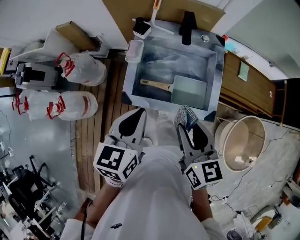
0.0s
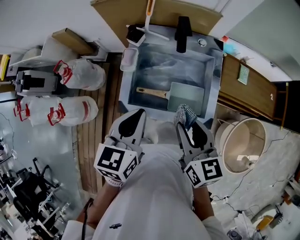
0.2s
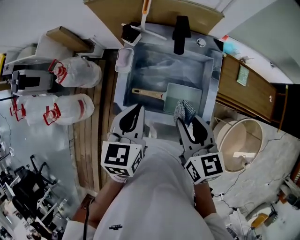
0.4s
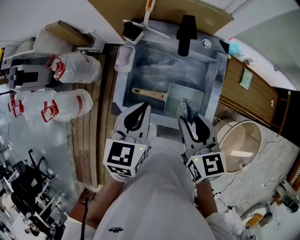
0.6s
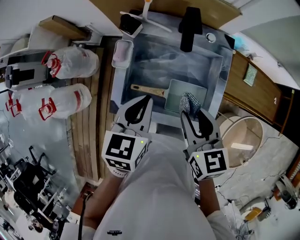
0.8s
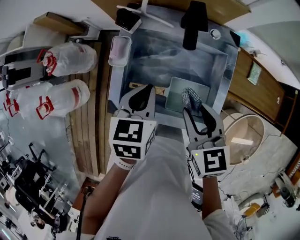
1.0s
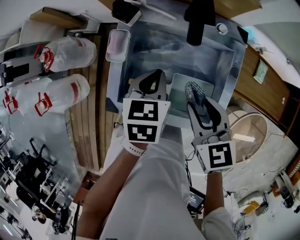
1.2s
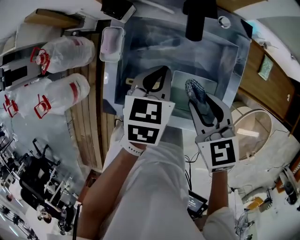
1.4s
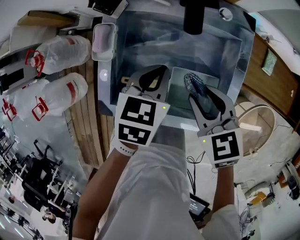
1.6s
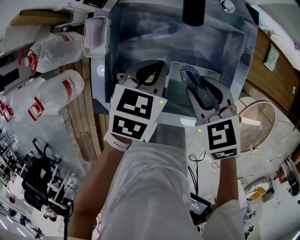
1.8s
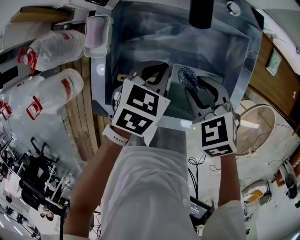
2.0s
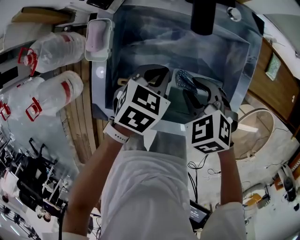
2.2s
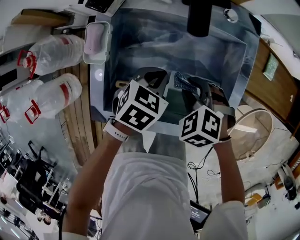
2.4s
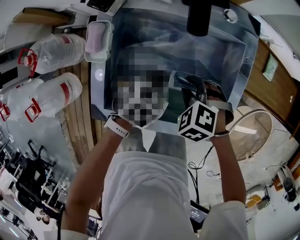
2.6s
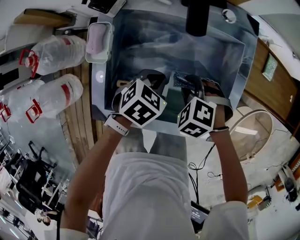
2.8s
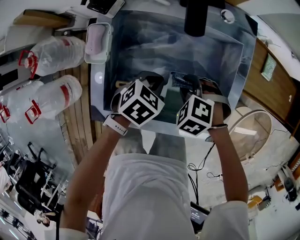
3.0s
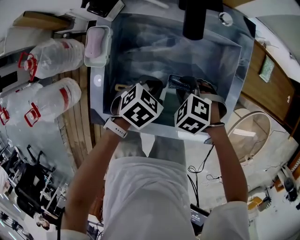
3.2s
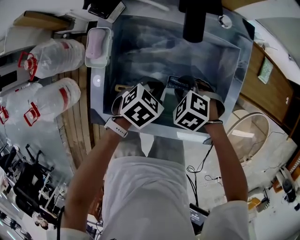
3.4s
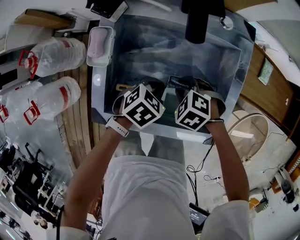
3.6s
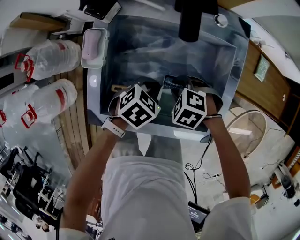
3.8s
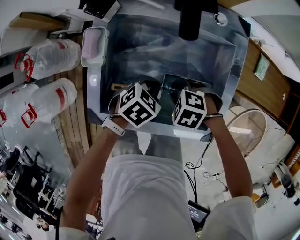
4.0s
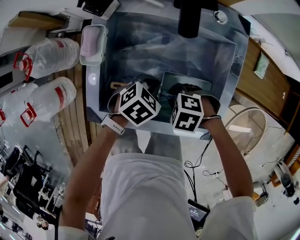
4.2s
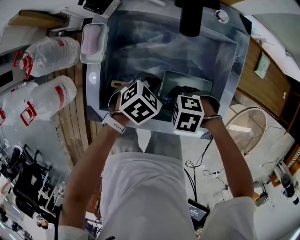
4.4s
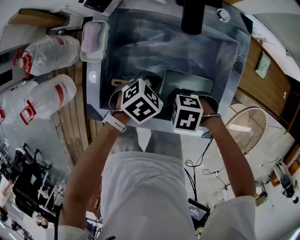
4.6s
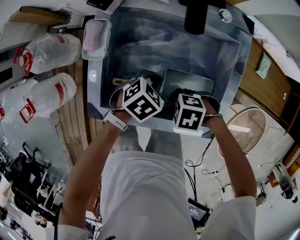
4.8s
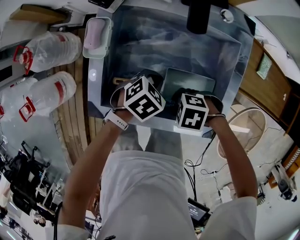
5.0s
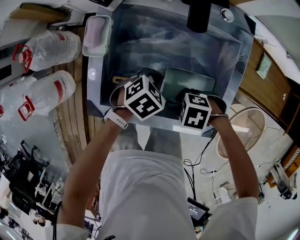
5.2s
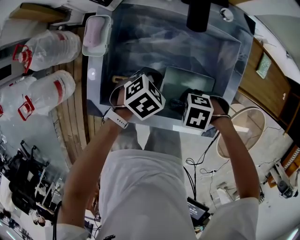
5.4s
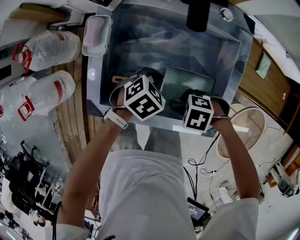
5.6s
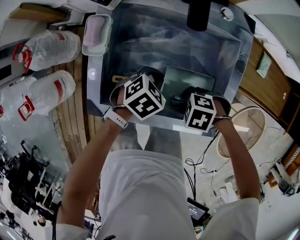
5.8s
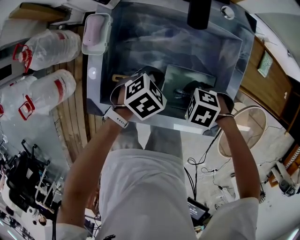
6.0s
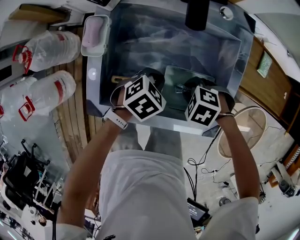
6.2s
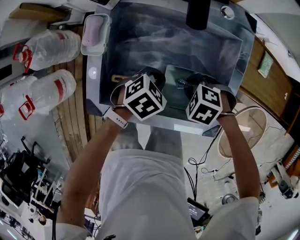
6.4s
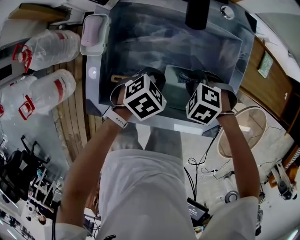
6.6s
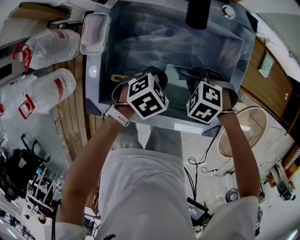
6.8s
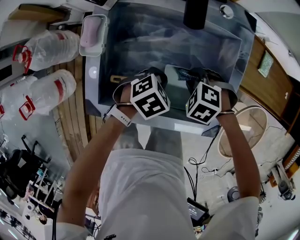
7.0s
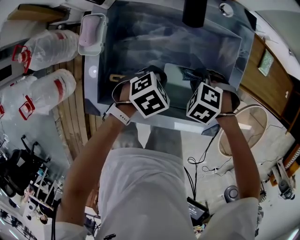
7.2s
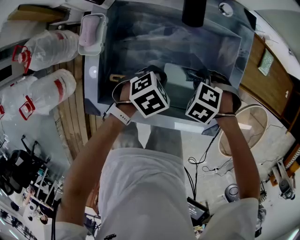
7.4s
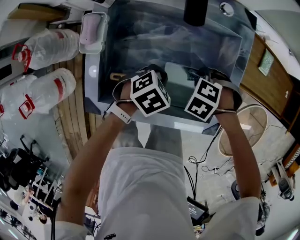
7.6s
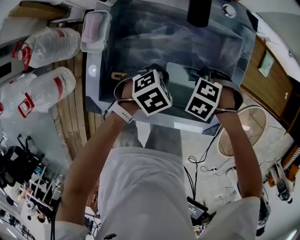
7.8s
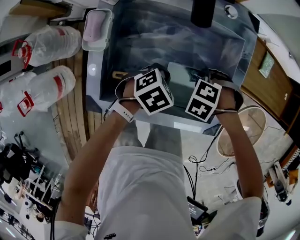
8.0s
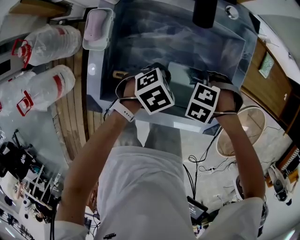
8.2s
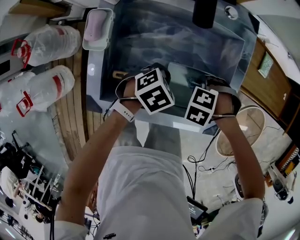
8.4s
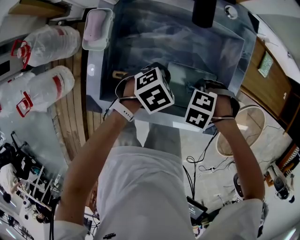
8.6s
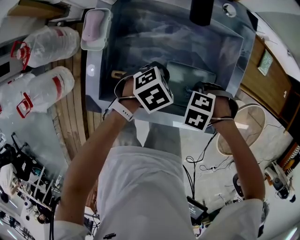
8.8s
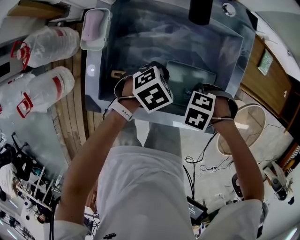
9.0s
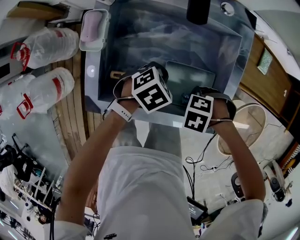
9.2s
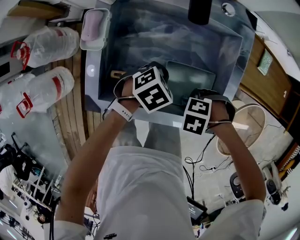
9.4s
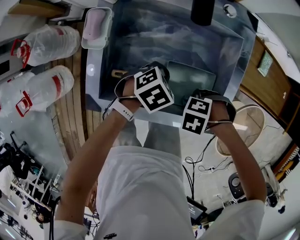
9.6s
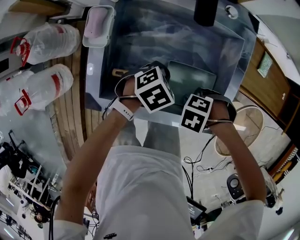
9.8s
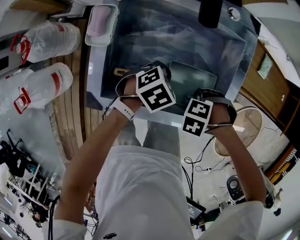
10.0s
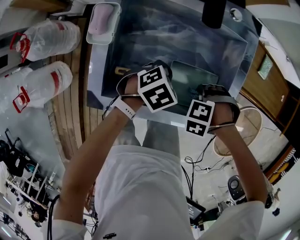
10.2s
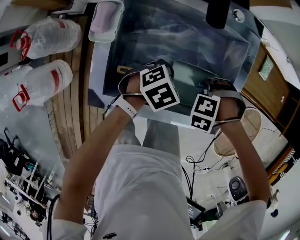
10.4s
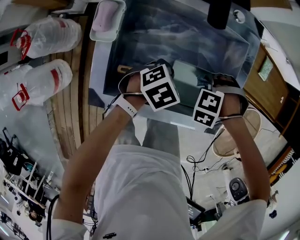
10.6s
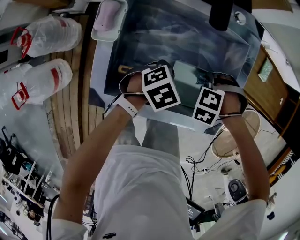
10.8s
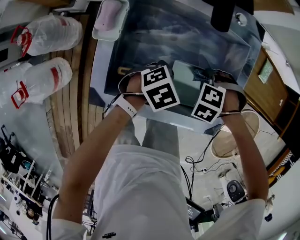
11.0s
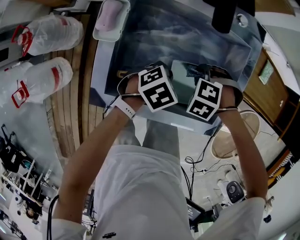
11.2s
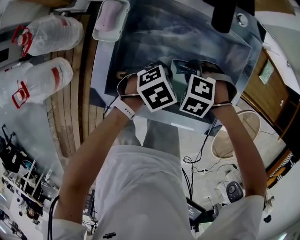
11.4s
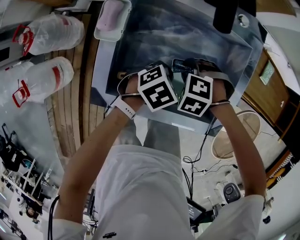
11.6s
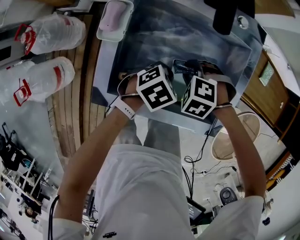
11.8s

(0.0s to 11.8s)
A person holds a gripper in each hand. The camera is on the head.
0.0s - 1.4s: The right gripper goes roughly 25 cm forward and downward, and changes its angle by approximately 30 degrees; the left gripper goes about 30 cm forward, downward and to the right.
1.4s - 3.0s: Both grippers move downward, approximately 15 cm. The right gripper points its fingers approximately 30 degrees further downward; the left gripper turns by roughly 40 degrees.
3.0s - 4.4s: The right gripper changes place by roughly 10 cm, and rotates approximately 30 degrees.
4.4s - 6.0s: The grippers move only a little.
6.0s - 7.4s: The right gripper ends up roughly 10 cm from where it was, and swivels roughly 20 degrees.
7.4s - 8.8s: The right gripper moves some 5 cm.
8.8s - 10.4s: The right gripper swivels roughly 20 degrees.
10.4s - 11.8s: The right gripper shifts by some 10 cm, and swivels roughly 30 degrees.

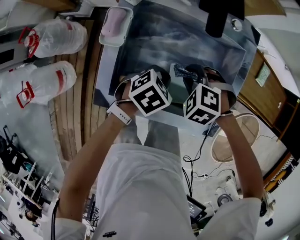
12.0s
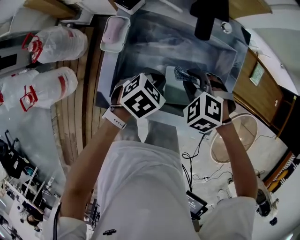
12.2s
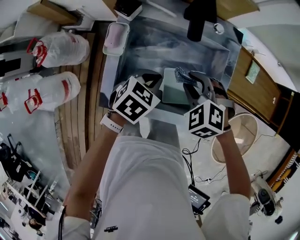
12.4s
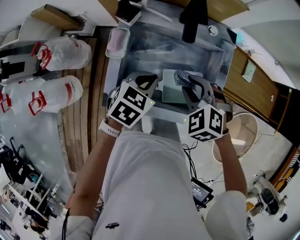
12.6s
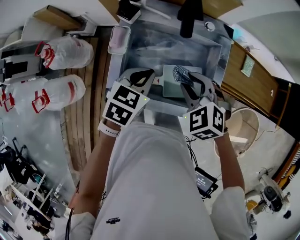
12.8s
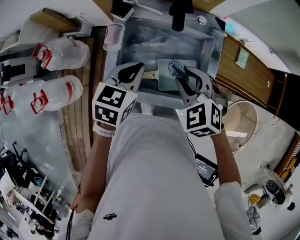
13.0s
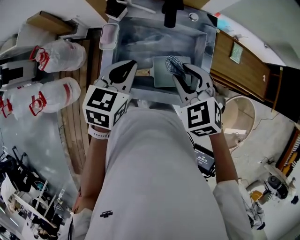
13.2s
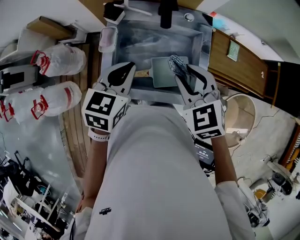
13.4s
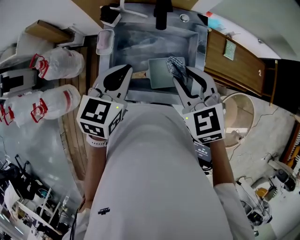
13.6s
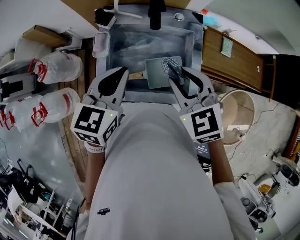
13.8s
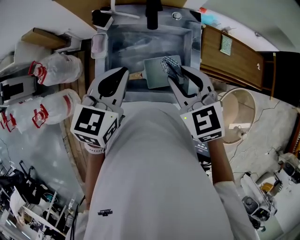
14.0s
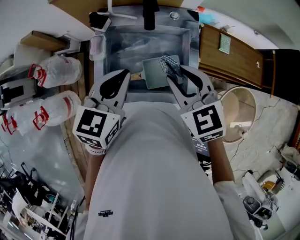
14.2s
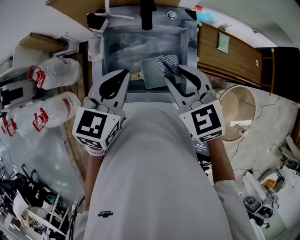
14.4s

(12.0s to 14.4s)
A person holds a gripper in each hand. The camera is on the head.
12.0s - 13.2s: Both grippers move upward, about 25 cm. The right gripper rotates about 40 degrees. The left gripper rotates roughly 40 degrees.
13.2s - 14.4s: The two grippers go roughly 5 cm upward. The right gripper turns by approximately 20 degrees.

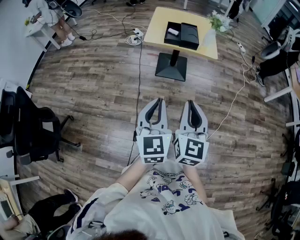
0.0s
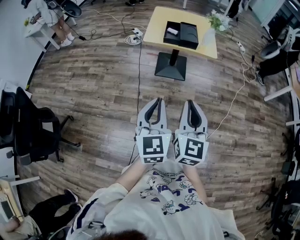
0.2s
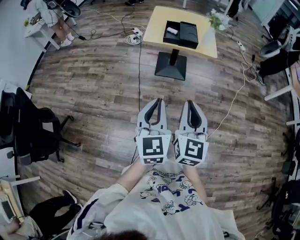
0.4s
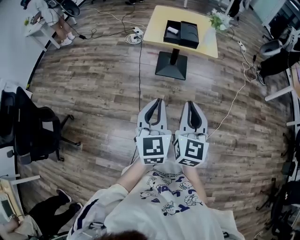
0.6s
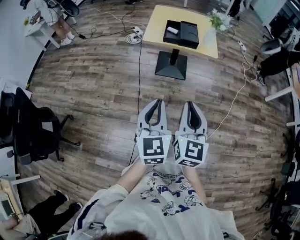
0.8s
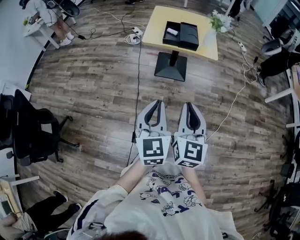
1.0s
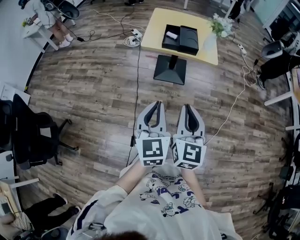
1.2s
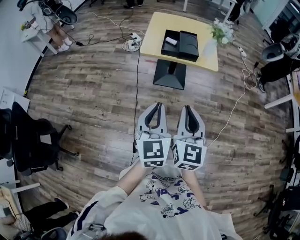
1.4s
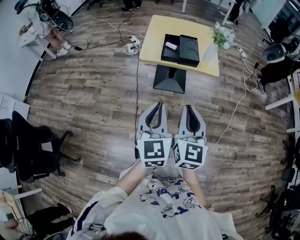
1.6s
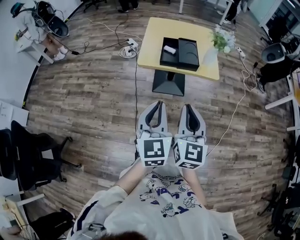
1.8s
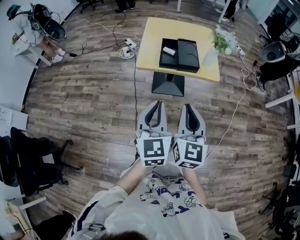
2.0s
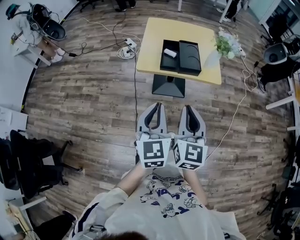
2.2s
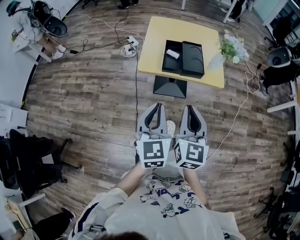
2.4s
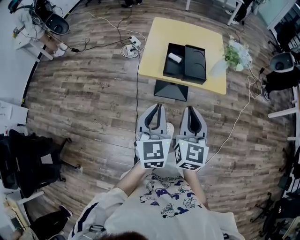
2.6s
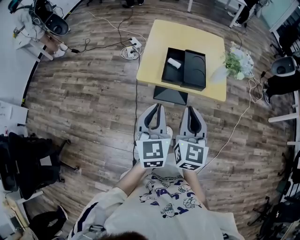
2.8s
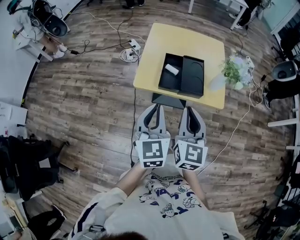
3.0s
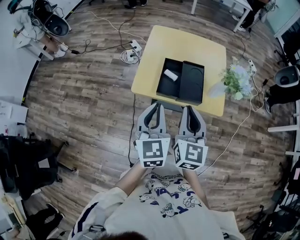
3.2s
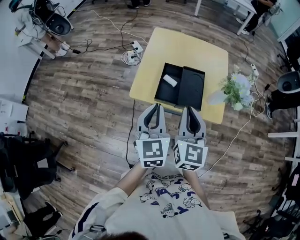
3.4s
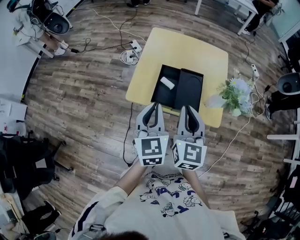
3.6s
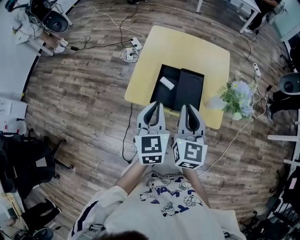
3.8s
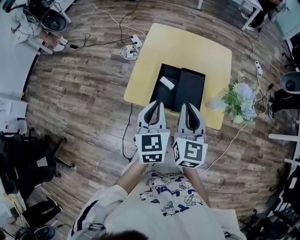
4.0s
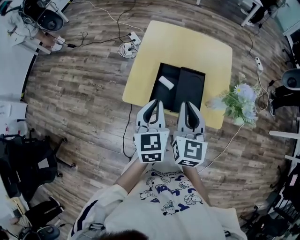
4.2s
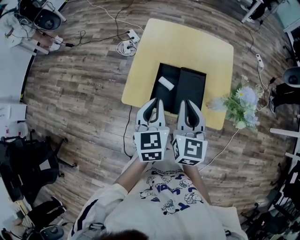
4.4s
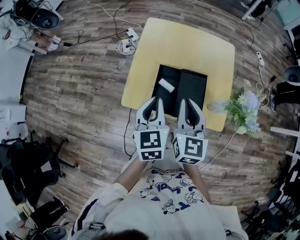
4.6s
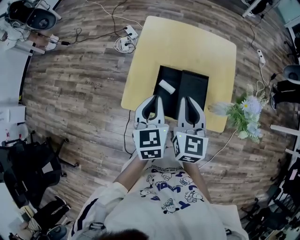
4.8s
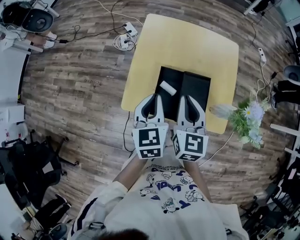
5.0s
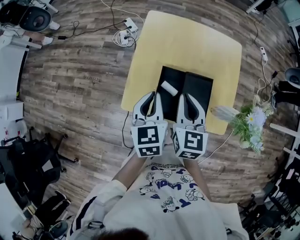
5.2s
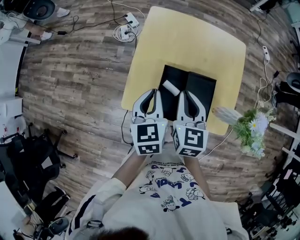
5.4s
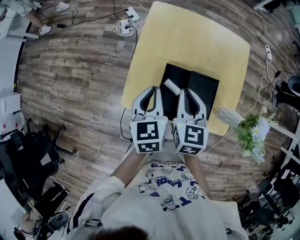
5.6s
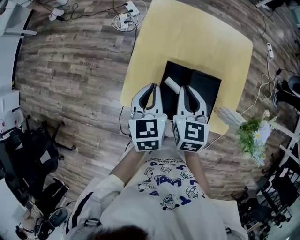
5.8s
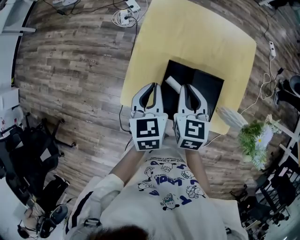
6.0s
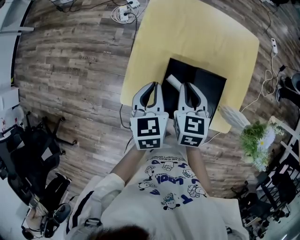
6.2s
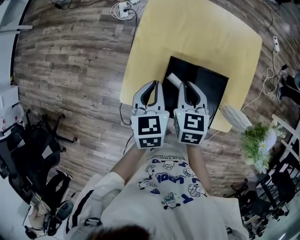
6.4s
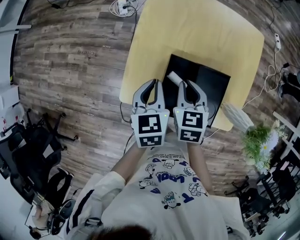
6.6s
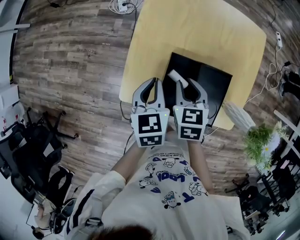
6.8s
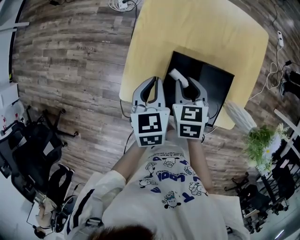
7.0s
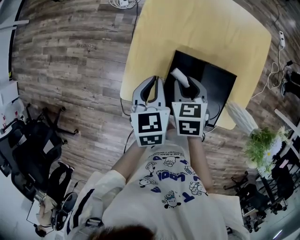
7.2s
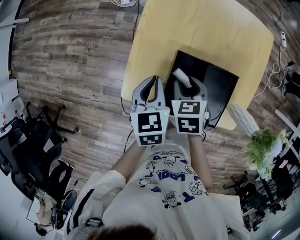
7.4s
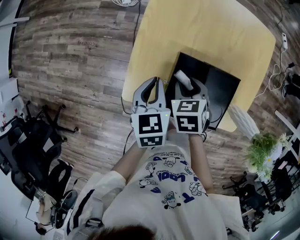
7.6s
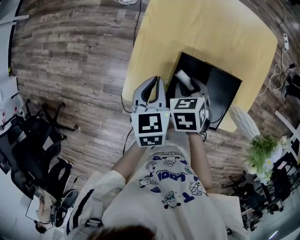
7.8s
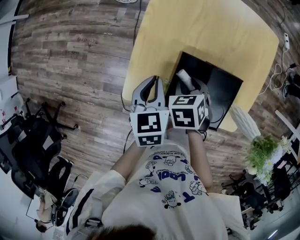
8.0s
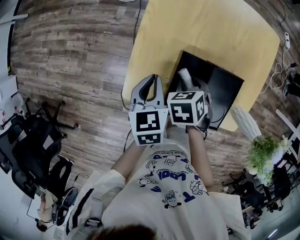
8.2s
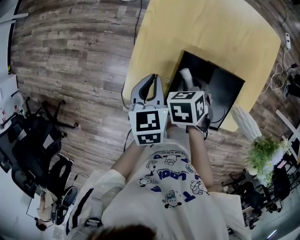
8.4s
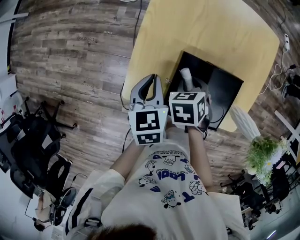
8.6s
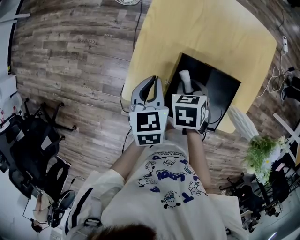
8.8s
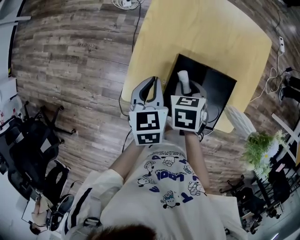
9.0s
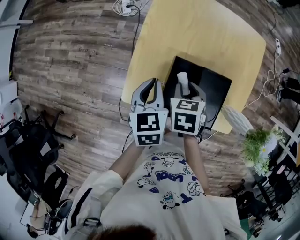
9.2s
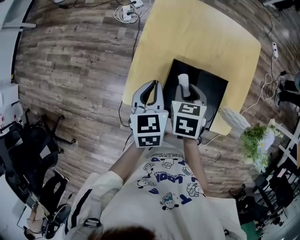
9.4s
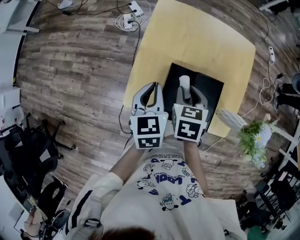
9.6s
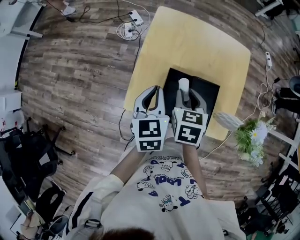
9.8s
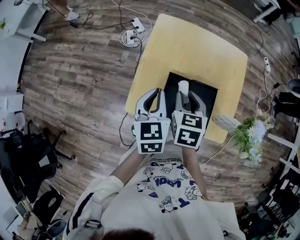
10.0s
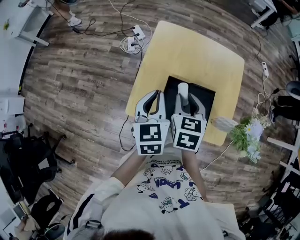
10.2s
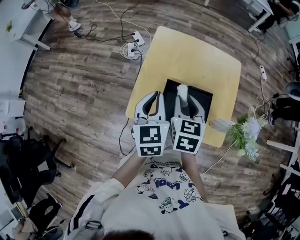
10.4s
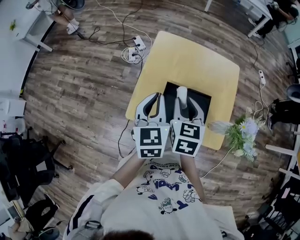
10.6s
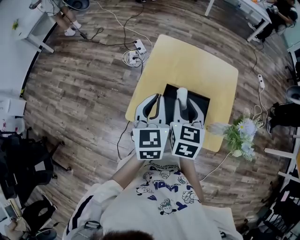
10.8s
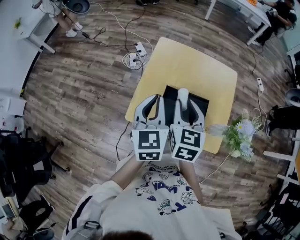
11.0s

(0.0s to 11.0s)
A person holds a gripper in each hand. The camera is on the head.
0.0s - 1.6s: The grippers both shift forward by some 15 cm.
1.6s - 3.2s: The grippers both shift forward by roughly 30 cm.
3.2s - 4.8s: The two grippers go some 15 cm forward.
4.8s - 6.2s: Both grippers travel together downward and forward, some 10 cm. The right gripper turns by roughly 20 degrees.
6.2s - 7.8s: The left gripper is displaced downward by about 5 cm. The right gripper heads downward, covering about 10 cm, points its fingers approximately 30 degrees further downward, and opens up.
7.8s - 9.4s: Both grippers move upward, about 5 cm.
9.4s - 11.0s: The grippers both shift upward by about 15 cm. The left gripper turns by about 20 degrees; the right gripper angles its fingers upward, by approximately 30 degrees.
